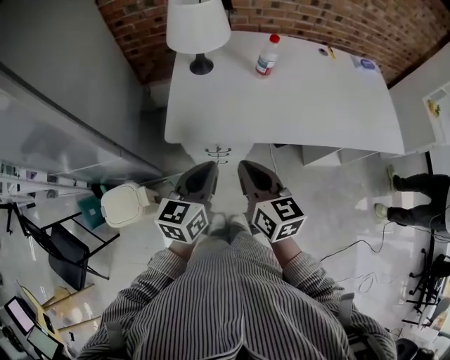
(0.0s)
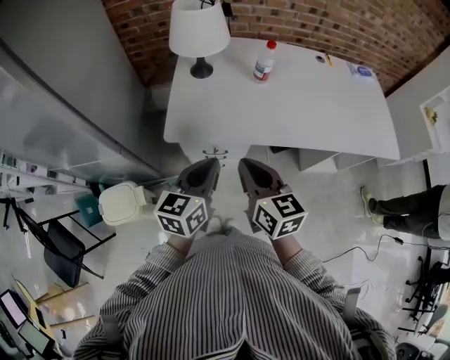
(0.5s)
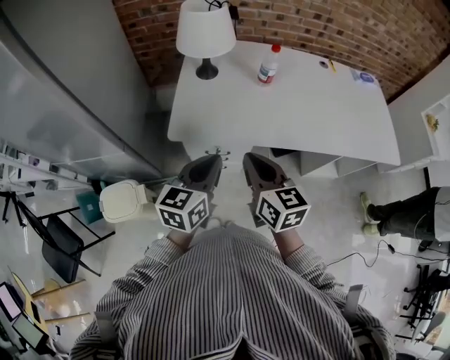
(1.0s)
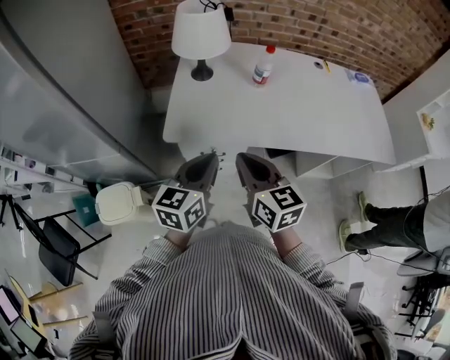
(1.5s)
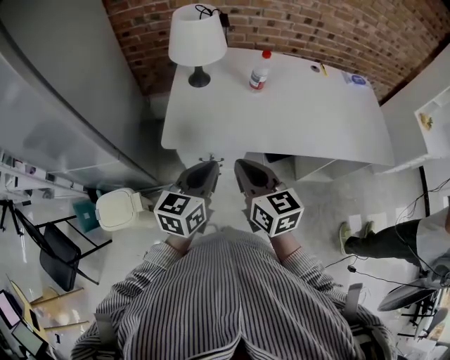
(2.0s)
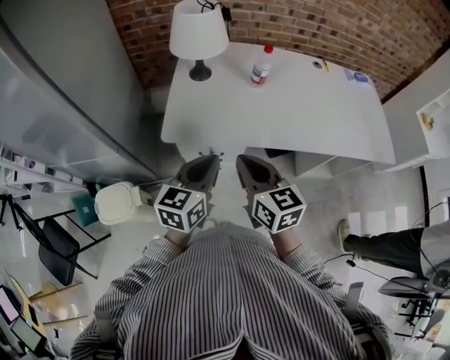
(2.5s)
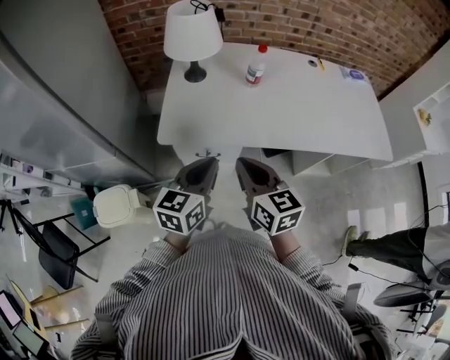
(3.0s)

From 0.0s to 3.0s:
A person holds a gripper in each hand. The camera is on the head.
From 0.0s to 3.0s: The grippers stay close to where they were, moving slightly.

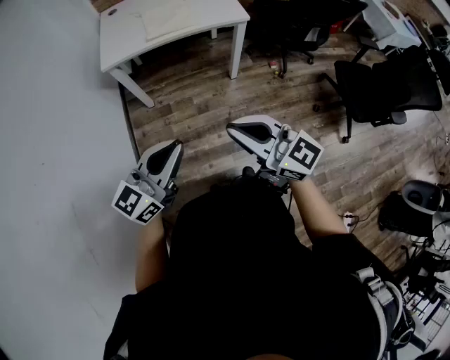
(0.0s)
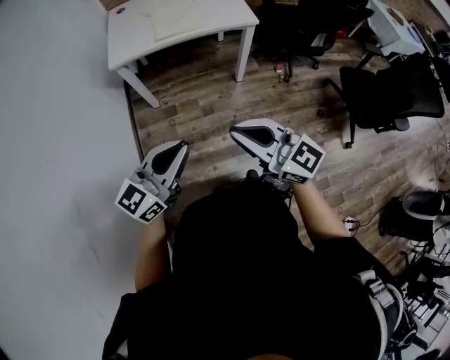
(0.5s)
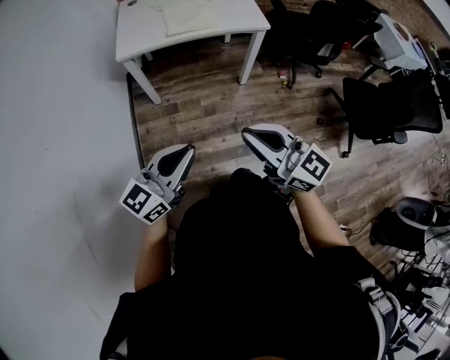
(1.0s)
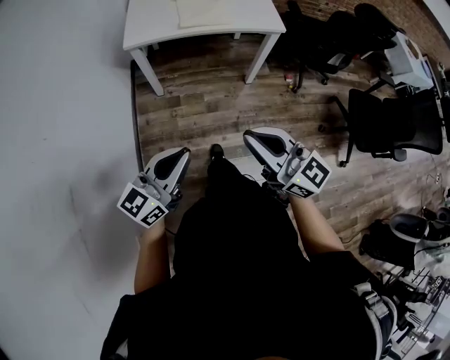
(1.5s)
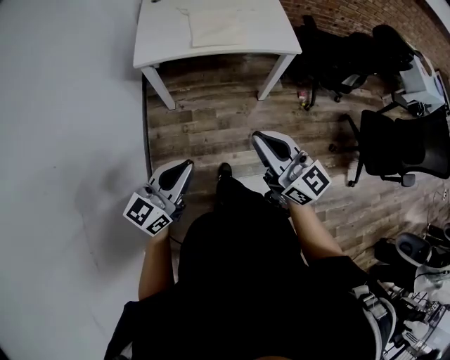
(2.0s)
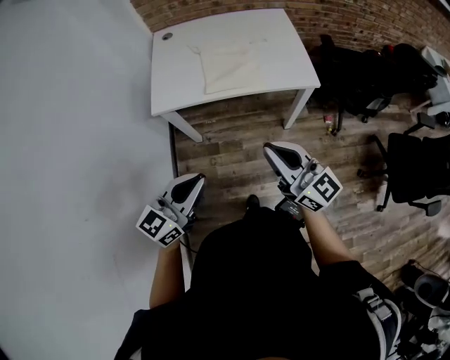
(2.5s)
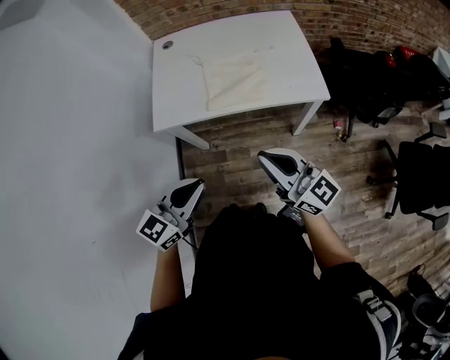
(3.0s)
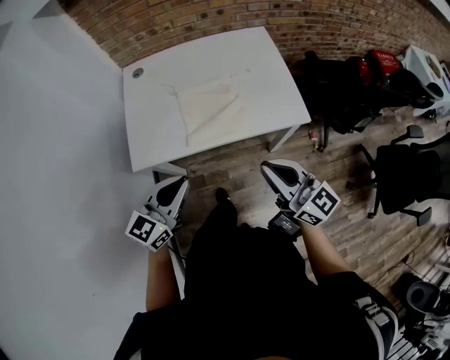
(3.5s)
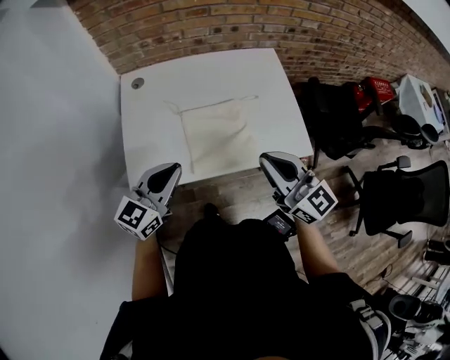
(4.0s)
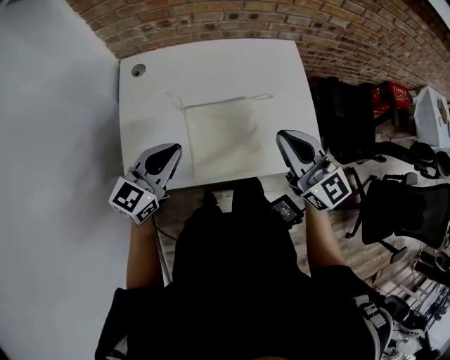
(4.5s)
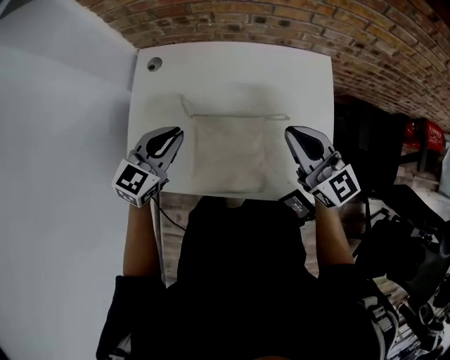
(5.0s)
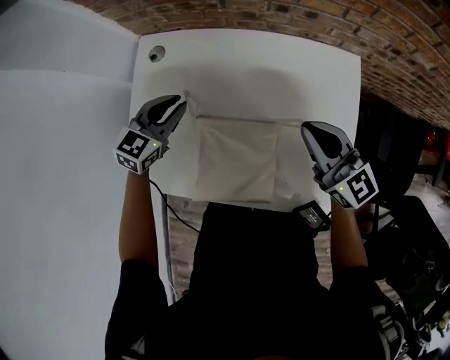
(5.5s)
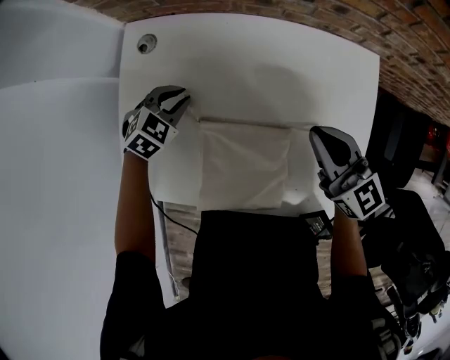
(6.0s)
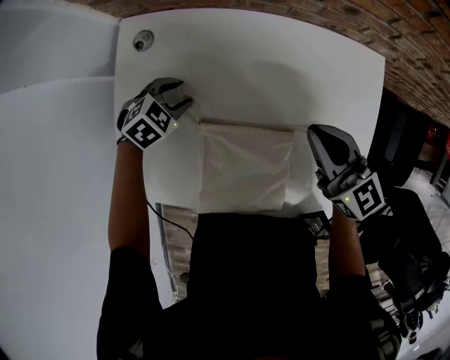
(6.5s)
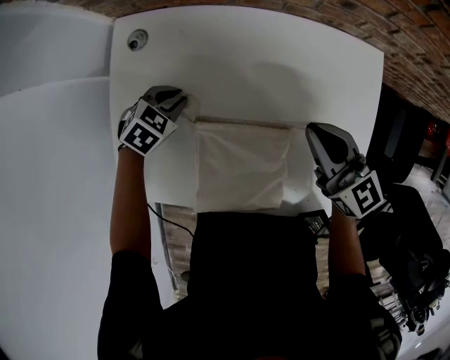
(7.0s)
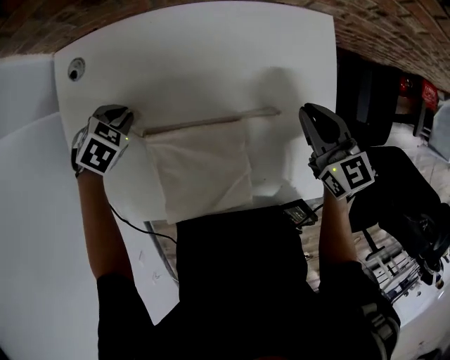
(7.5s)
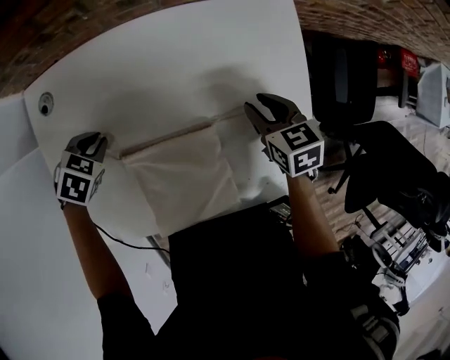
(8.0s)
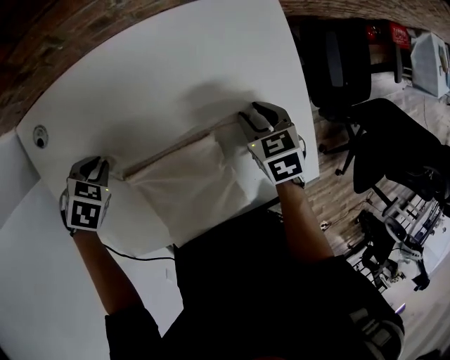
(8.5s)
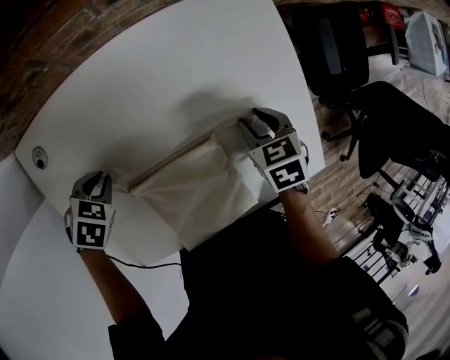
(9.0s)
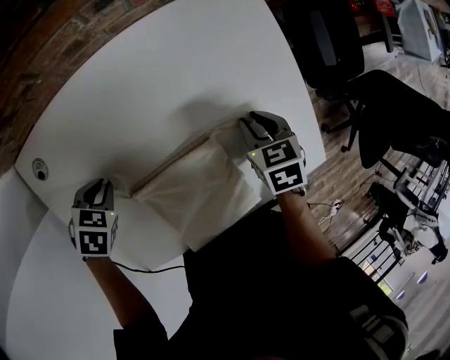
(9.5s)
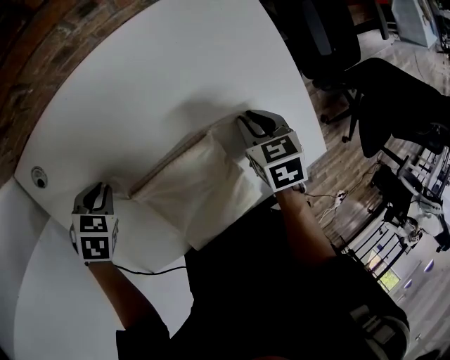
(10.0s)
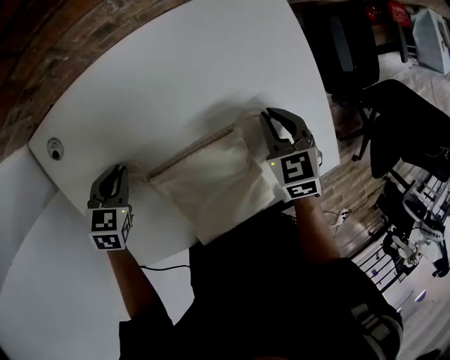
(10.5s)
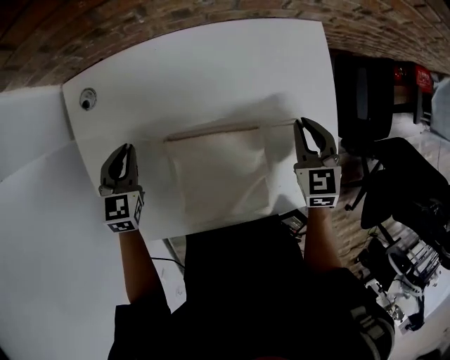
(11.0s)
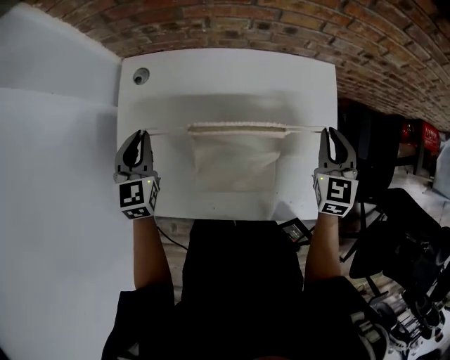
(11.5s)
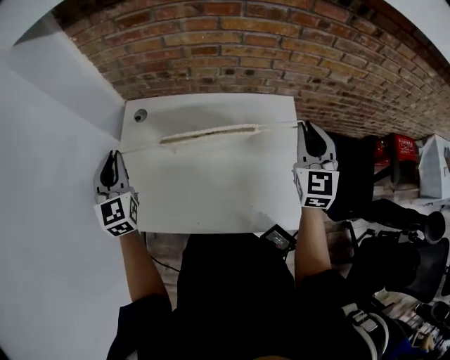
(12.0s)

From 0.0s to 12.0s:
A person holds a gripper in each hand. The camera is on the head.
From 0.0s to 2.0s: The right gripper heads forward, covering approximately 15 cm; the left gripper moves forward, to the left and downward, roughly 15 cm.
From 2.0s to 4.0s: The two grippers travel together, forward, some 50 cm.
From 4.0s to 6.0s: The grippers both shift forward and downward by approximately 40 cm. The left gripper tips its fingers downward by some 50 degrees. The right gripper turns by some 20 degrees.
From 6.0s to 8.0s: The left gripper rotates approximately 20 degrees, and opens and closes again. The right gripper shifts roughly 15 cm downward, tilts its fingers some 40 degrees downward, and opens up.
From 8.0s to 10.0s: The right gripper changes place by about 5 cm, and turns by approximately 20 degrees.
From 10.0s to 12.0s: Both grippers travel together upward, some 35 cm. The left gripper tips its fingers upward by some 70 degrees; the right gripper tilts its fingers some 60 degrees upward.

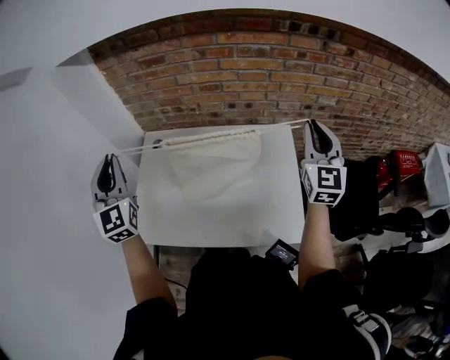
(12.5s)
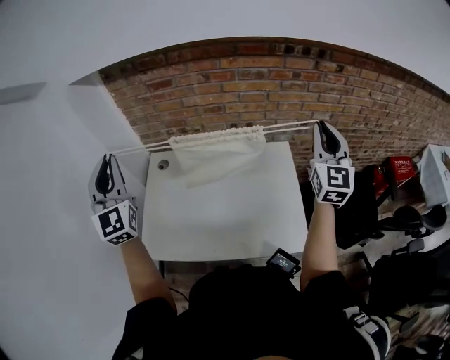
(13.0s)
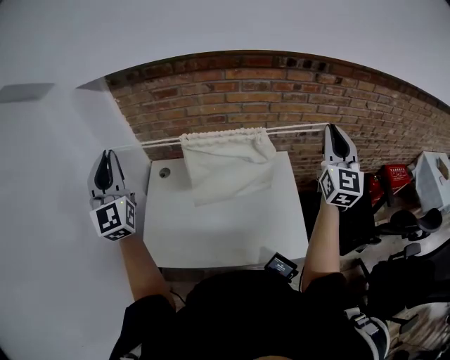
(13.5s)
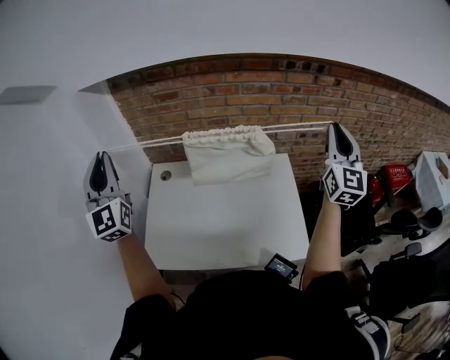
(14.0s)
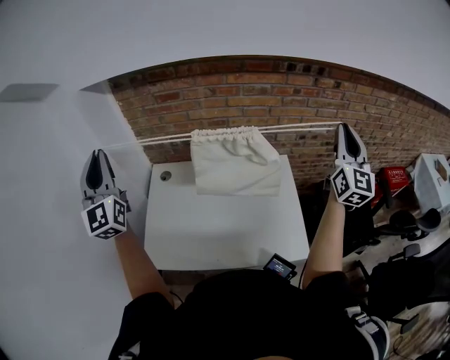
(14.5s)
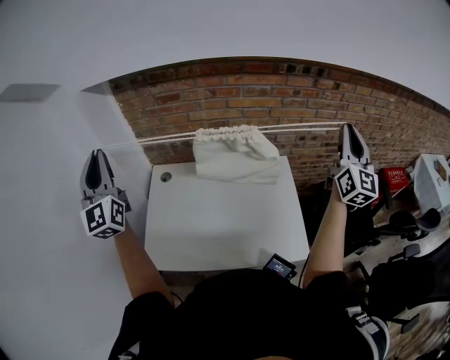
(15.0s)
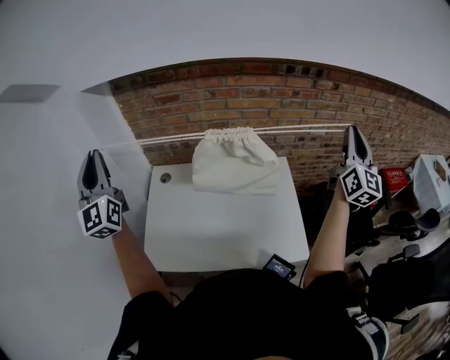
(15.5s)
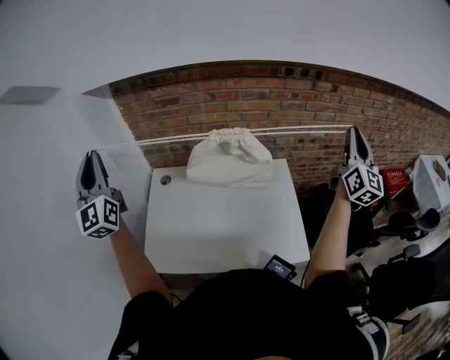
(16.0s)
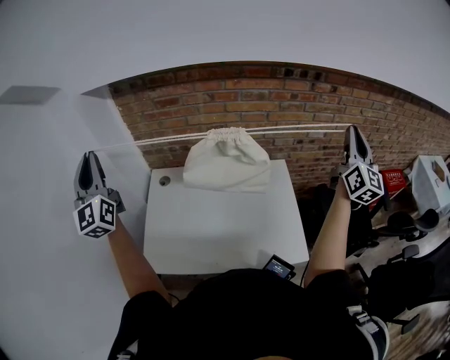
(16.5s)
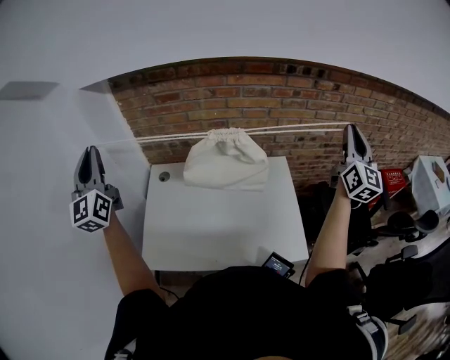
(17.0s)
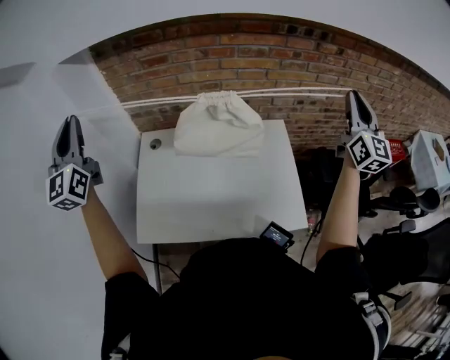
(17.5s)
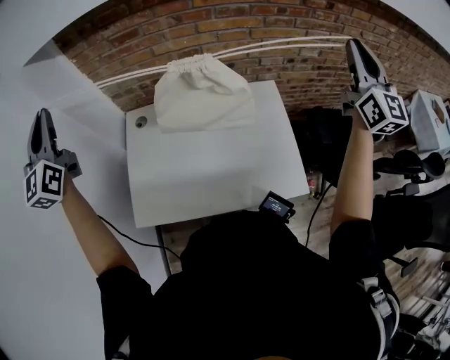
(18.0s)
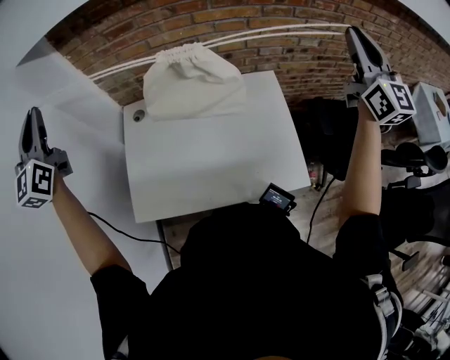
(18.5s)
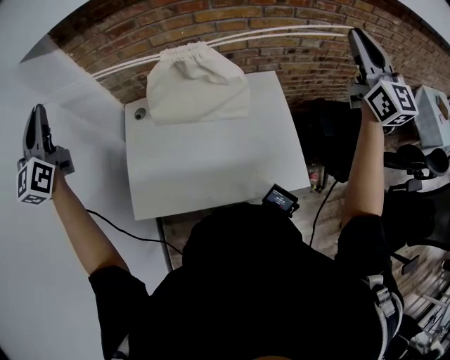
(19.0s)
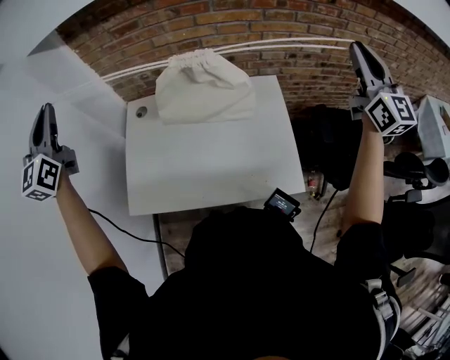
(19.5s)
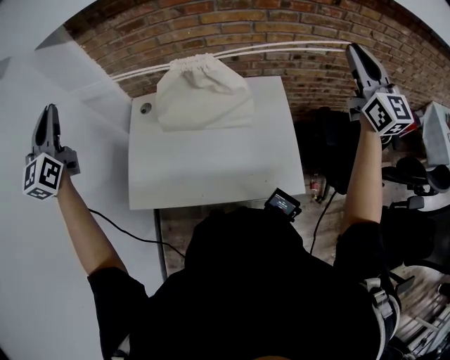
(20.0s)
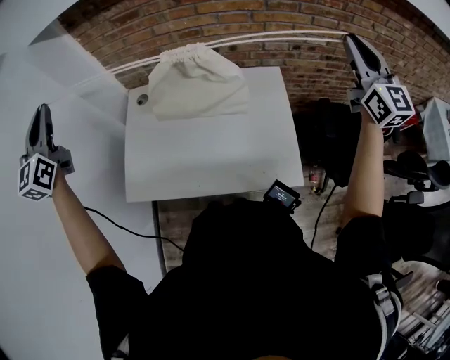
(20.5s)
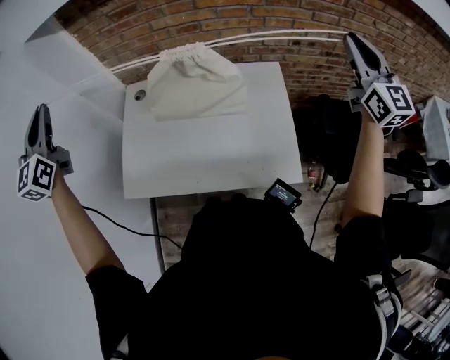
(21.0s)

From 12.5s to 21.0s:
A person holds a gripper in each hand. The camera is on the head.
From 12.5s to 14.5s: The right gripper goes some 15 cm upward, while the left gripper moves upward and to the left, roughly 15 cm.
From 14.5s to 16.5s: The right gripper shifts by approximately 5 cm.
From 16.5s to 19.0s: The right gripper swivels approximately 20 degrees, while the left gripper moves forward, roughly 5 cm, and swivels roughly 20 degrees.
From 19.0s to 21.0s: The left gripper shifts some 5 cm backward; the right gripper heads downward, covering some 5 cm.

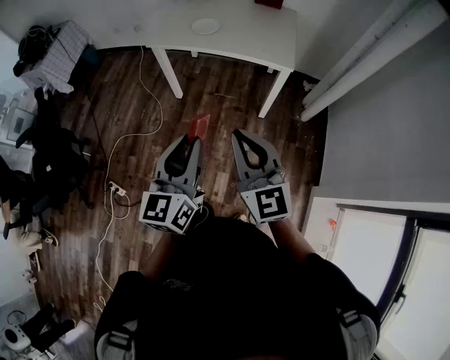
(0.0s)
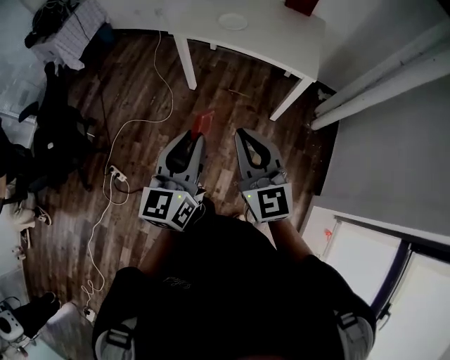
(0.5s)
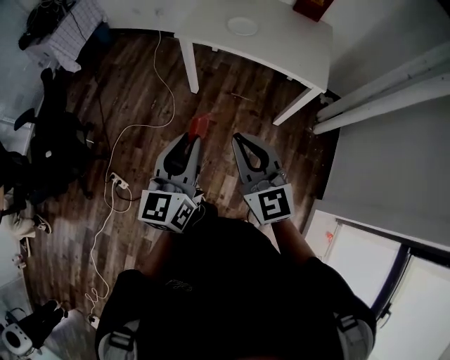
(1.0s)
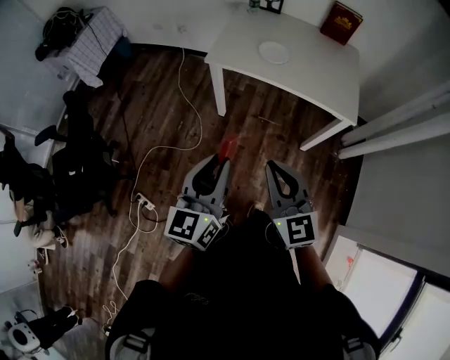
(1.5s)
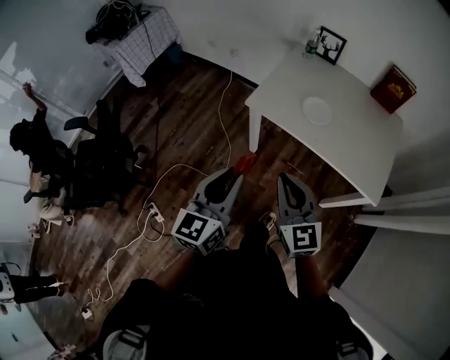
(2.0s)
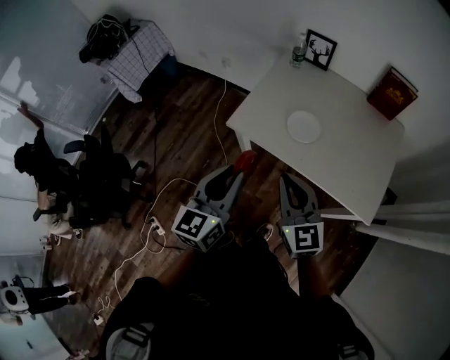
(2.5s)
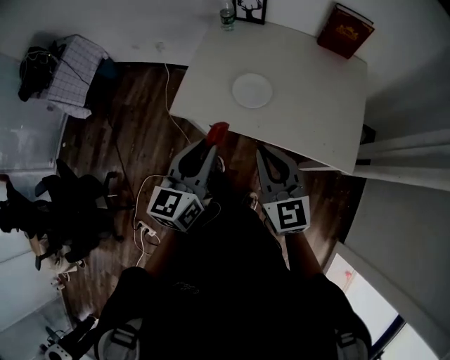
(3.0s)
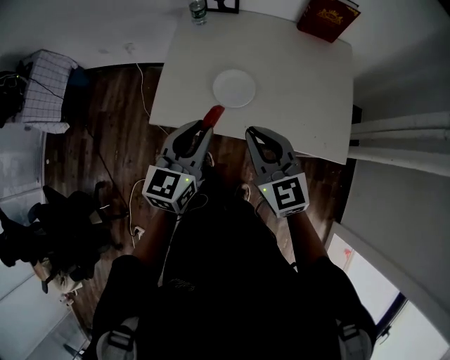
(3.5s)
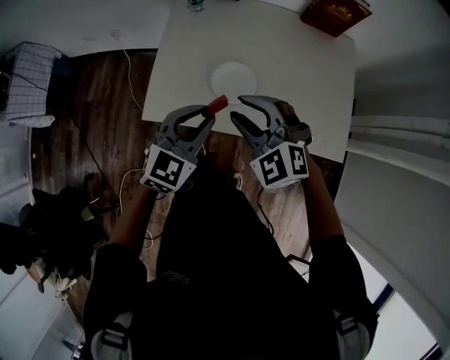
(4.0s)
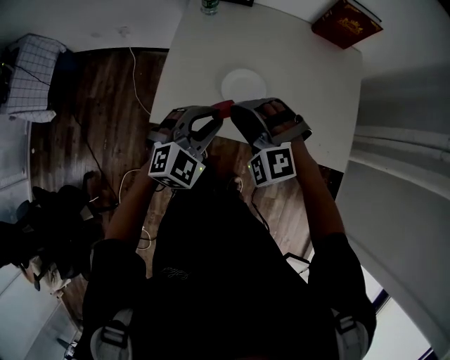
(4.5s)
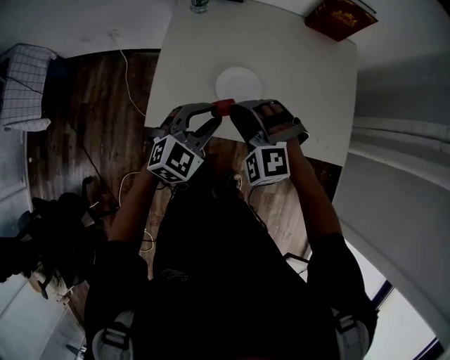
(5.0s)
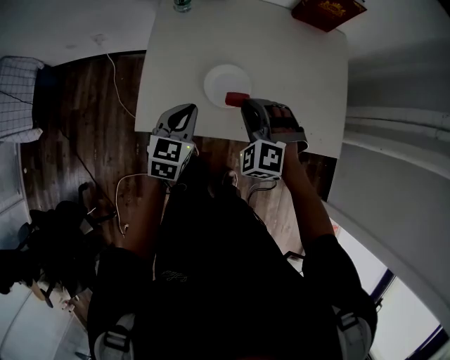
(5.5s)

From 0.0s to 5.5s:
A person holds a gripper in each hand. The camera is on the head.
From 0.0s to 2.0s: The right gripper shifts approximately 35 cm forward. Meanwhile the left gripper is displaced forward and to the left by approximately 40 cm.
From 2.0s to 3.5s: Both grippers move forward and to the right, approximately 30 cm. The left gripper swivels some 30 degrees.
From 3.5s to 5.5s: Both grippers move downward and forward, roughly 15 cm. The right gripper rotates around the line of its fingers by approximately 50 degrees, counterclockwise from behind.
